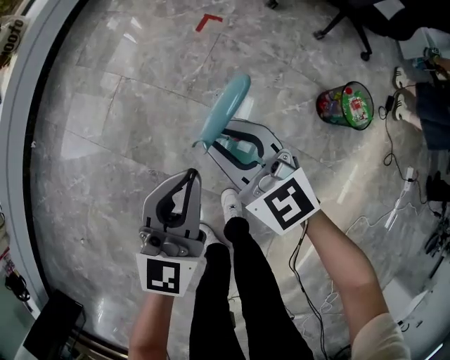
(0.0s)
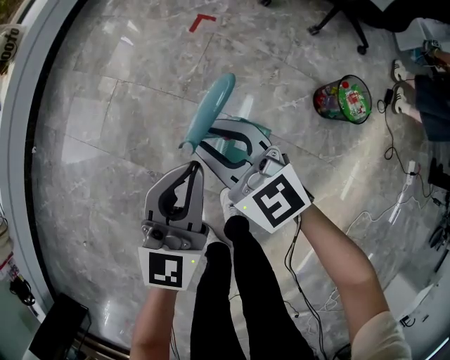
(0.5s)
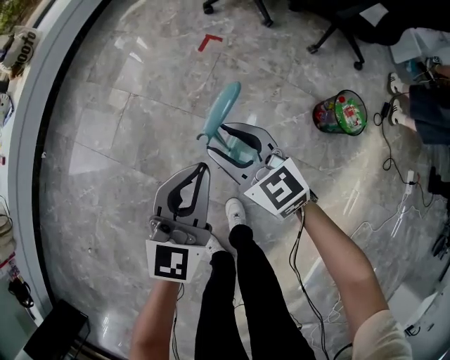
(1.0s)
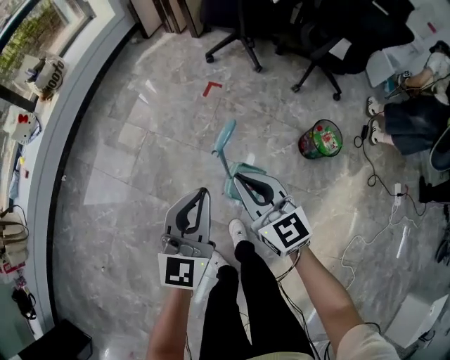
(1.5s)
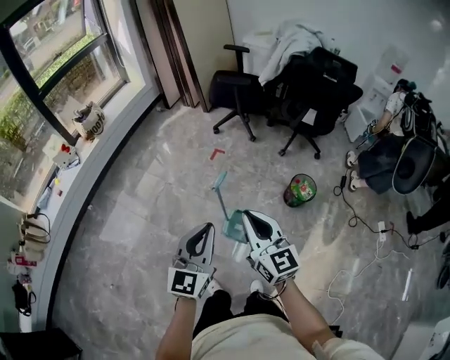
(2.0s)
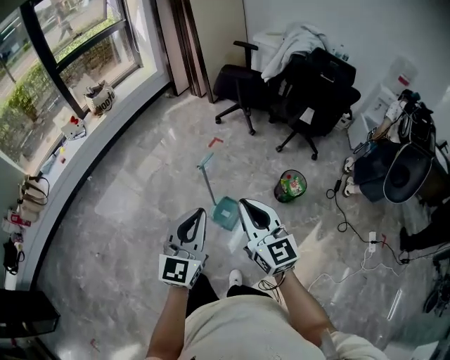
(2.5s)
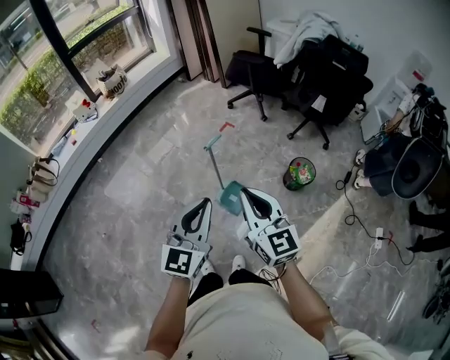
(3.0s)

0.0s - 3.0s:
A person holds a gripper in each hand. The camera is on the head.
0.0s - 1.5s: The right gripper is displaced upward and backward by approximately 20 cm, and opens and closes again. The left gripper is displaced upward by approximately 20 cm.
1.5s - 3.0s: The left gripper heads backward and upward, covering about 40 cm. The right gripper is displaced upward, backward and to the right by about 40 cm.

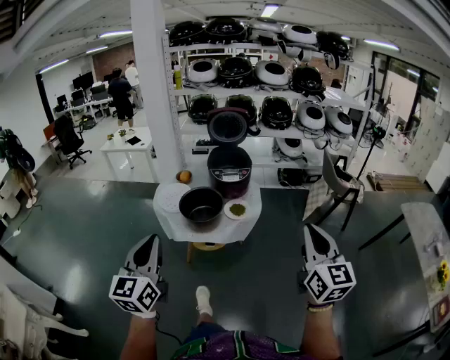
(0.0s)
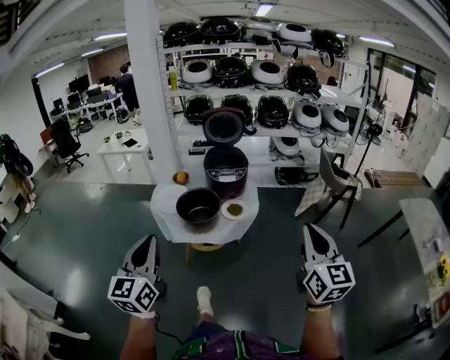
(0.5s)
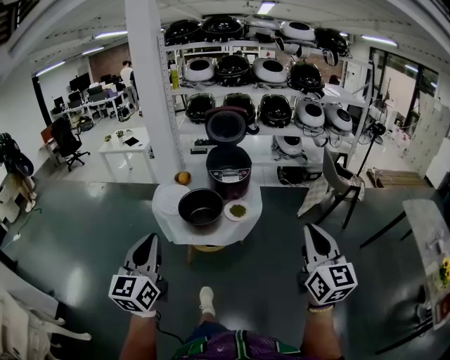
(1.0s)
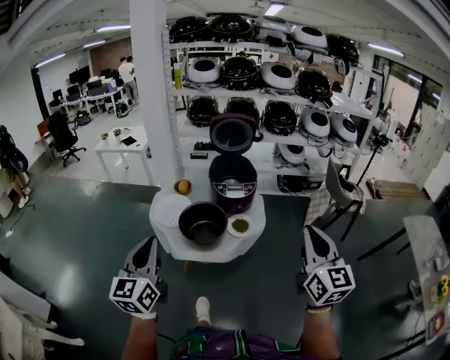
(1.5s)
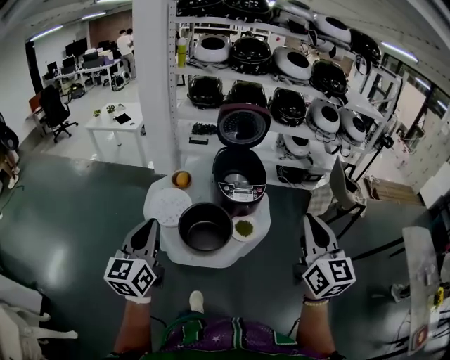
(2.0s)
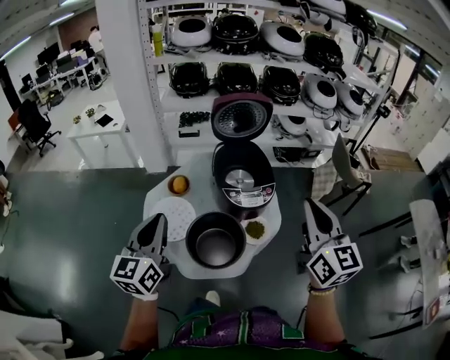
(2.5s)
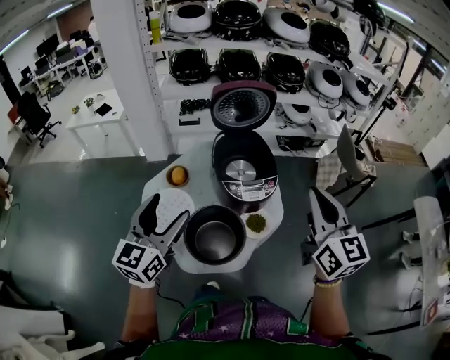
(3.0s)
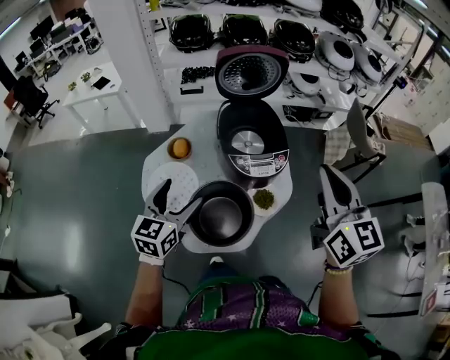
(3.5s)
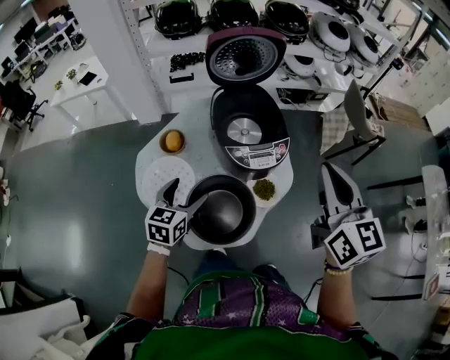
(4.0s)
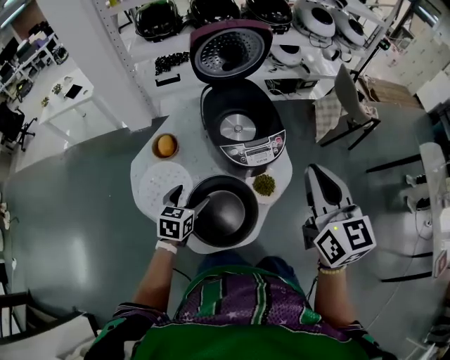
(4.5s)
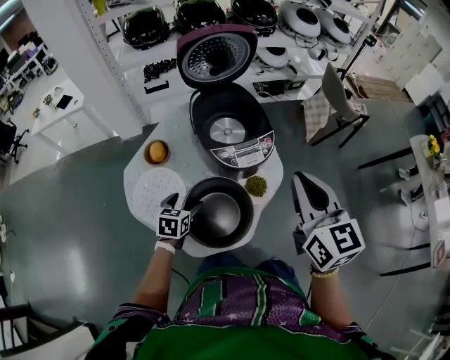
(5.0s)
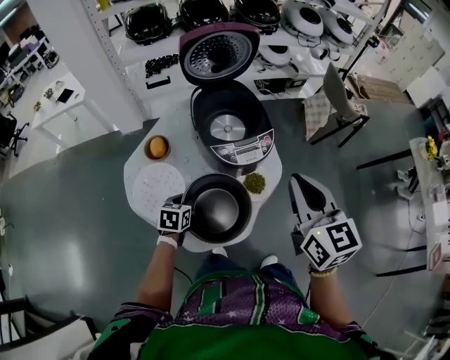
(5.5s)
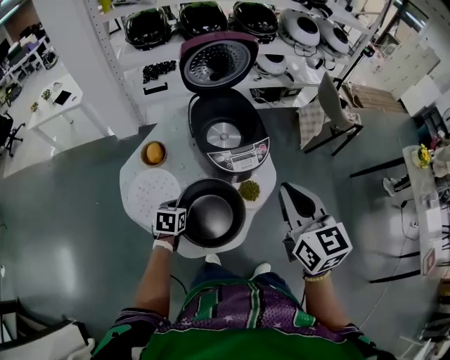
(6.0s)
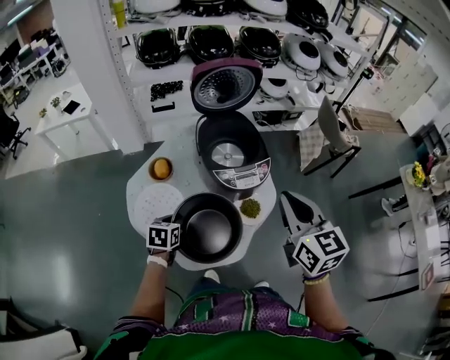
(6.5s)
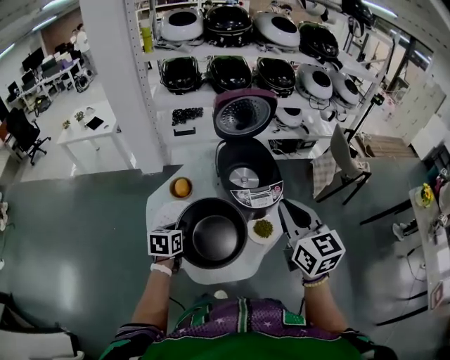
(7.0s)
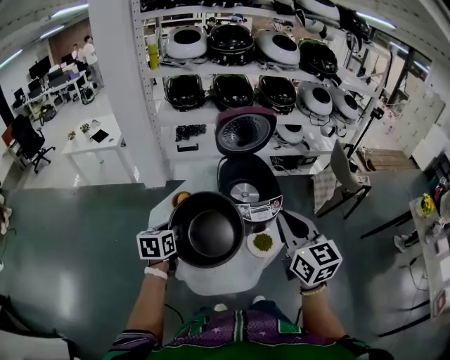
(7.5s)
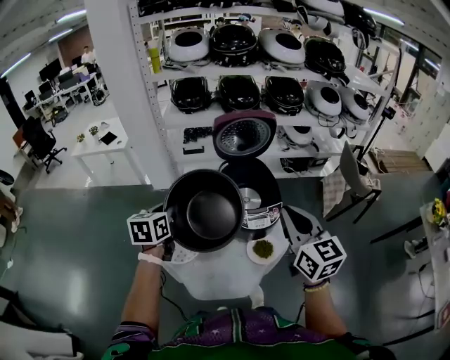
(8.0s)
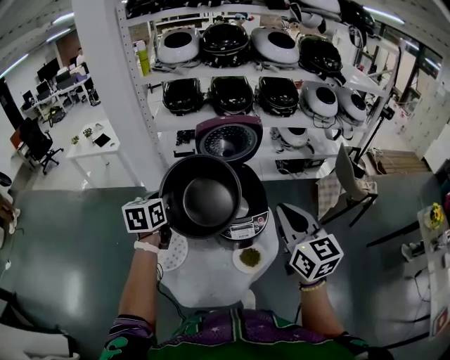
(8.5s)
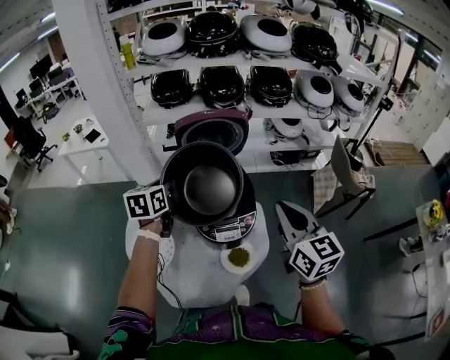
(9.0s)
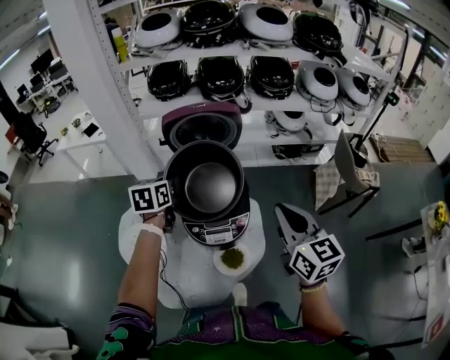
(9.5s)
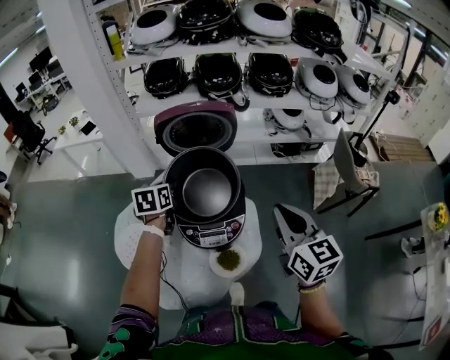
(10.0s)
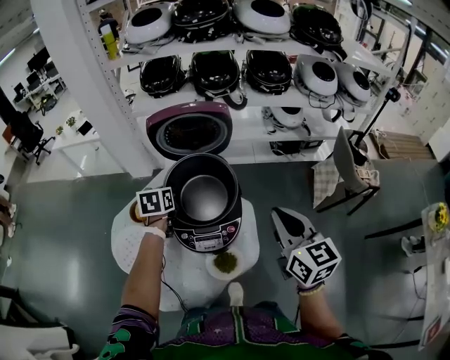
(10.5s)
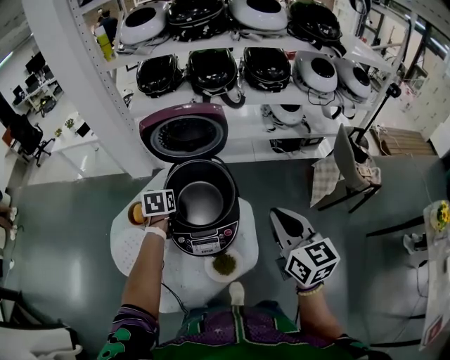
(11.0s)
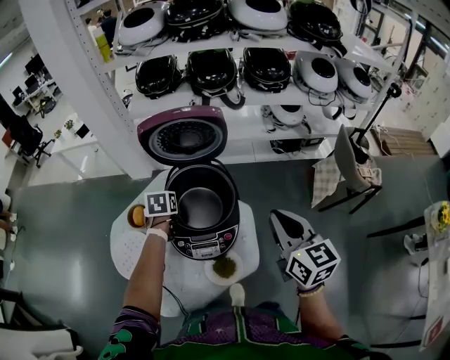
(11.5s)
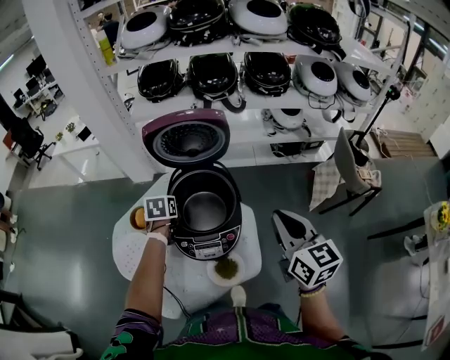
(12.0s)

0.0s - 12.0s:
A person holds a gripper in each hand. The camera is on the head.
0.0s - 2.0s: The grippers both shift forward by approximately 25 cm.
2.0s - 4.0s: The left gripper heads downward and forward, covering about 35 cm, changes its angle by approximately 40 degrees, and opens up, while the right gripper goes roughly 20 cm forward and downward.
4.0s - 6.0s: The left gripper goes some 15 cm downward, turns by about 20 degrees, and closes up, while the right gripper shifts about 5 cm downward.
6.0s - 8.0s: The right gripper heads upward and forward, covering about 10 cm. Meanwhile the left gripper travels upward by some 30 cm, and swivels some 30 degrees.
8.0s - 10.0s: The grippers both shift to the right, forward and downward by about 25 cm.
10.0s - 12.0s: The left gripper is displaced downward by some 10 cm.

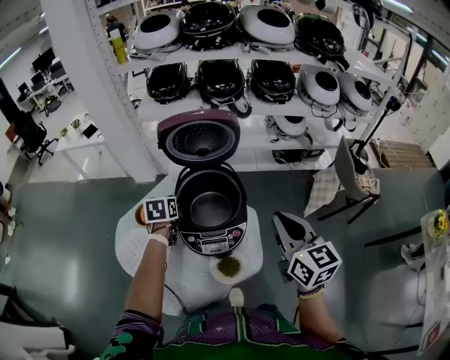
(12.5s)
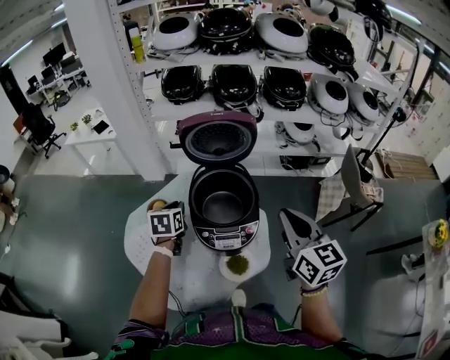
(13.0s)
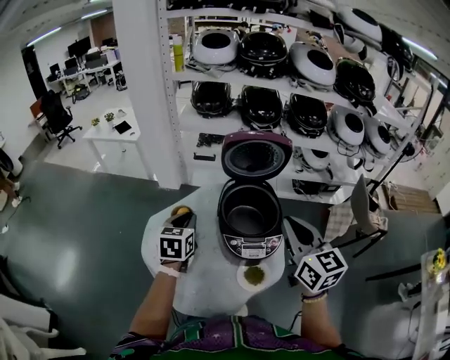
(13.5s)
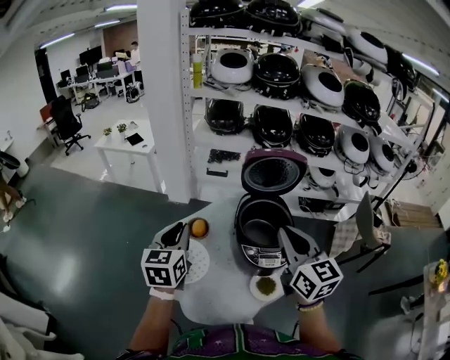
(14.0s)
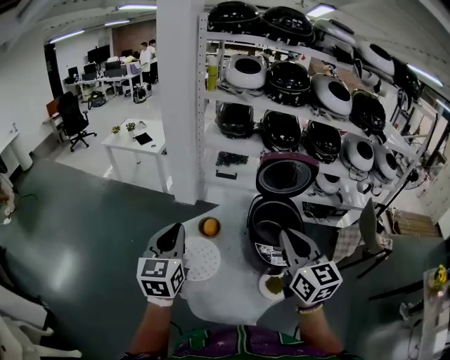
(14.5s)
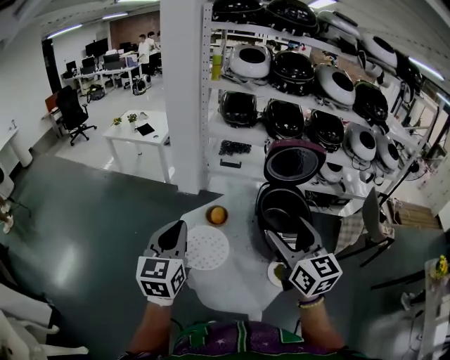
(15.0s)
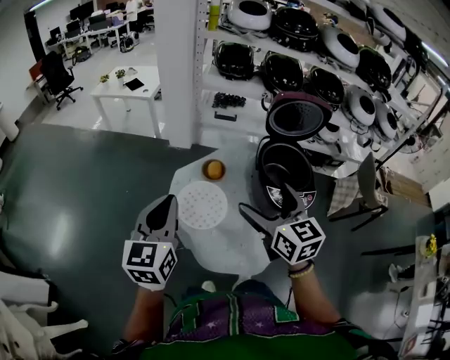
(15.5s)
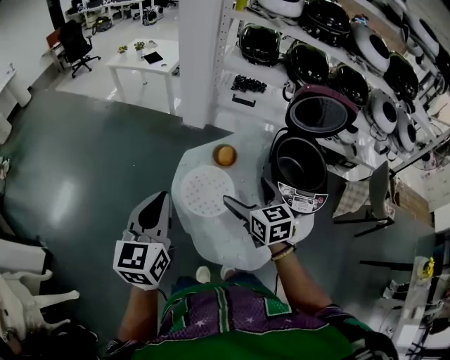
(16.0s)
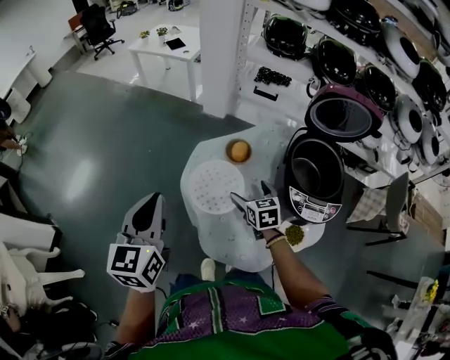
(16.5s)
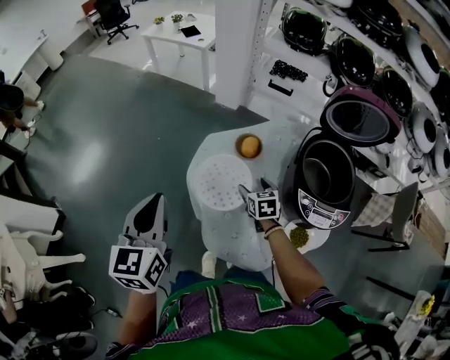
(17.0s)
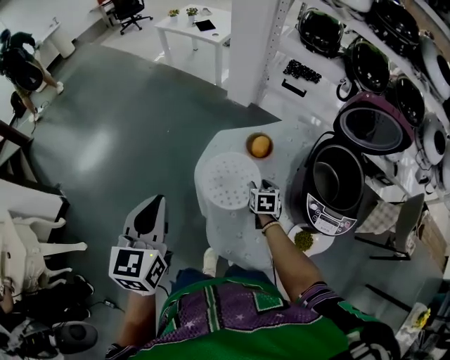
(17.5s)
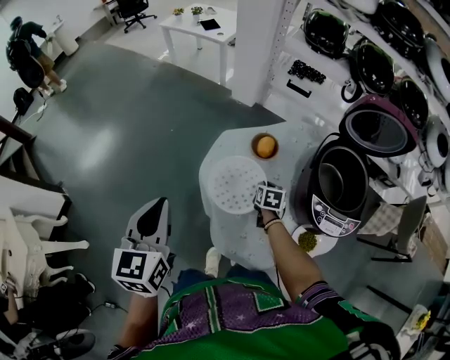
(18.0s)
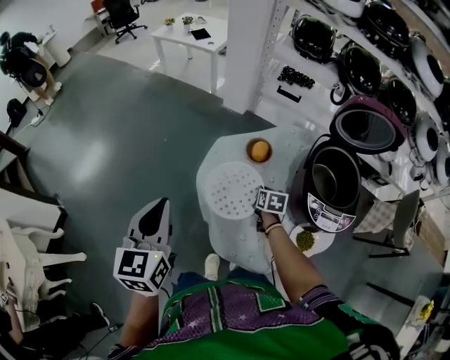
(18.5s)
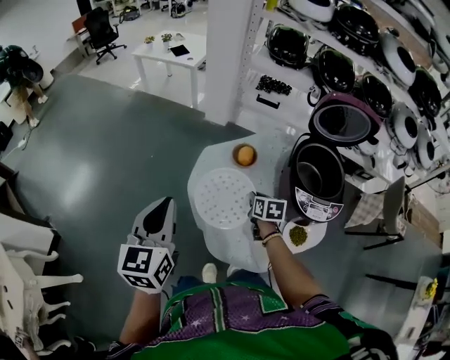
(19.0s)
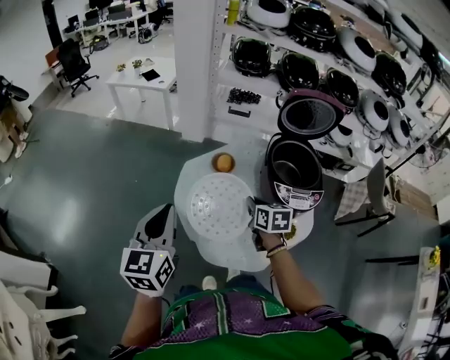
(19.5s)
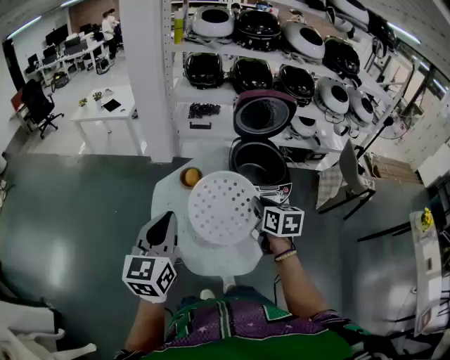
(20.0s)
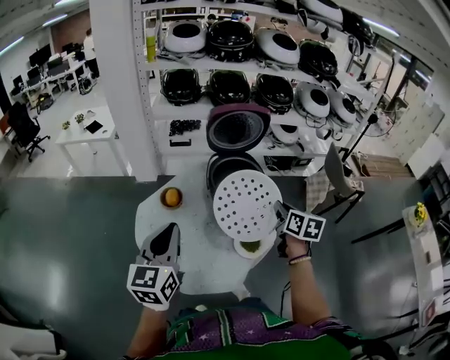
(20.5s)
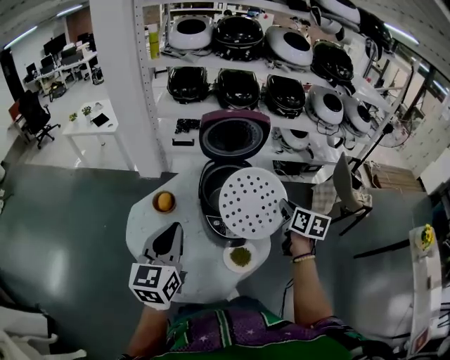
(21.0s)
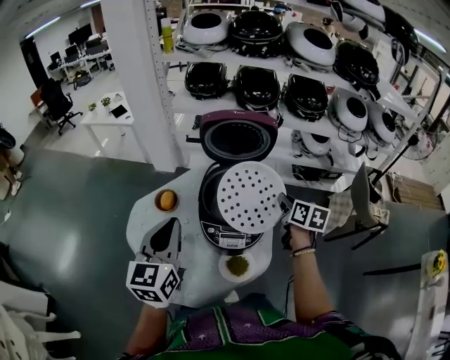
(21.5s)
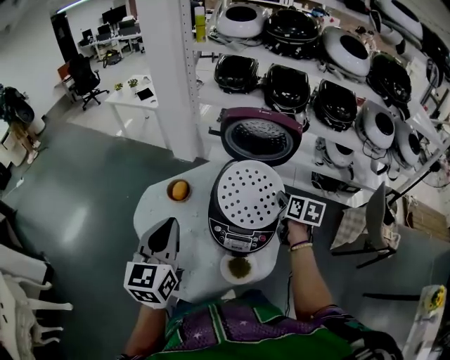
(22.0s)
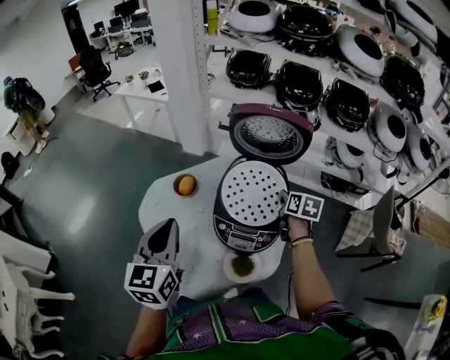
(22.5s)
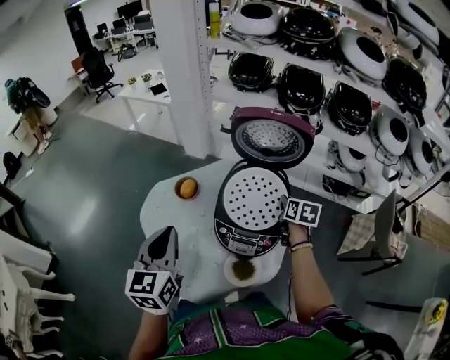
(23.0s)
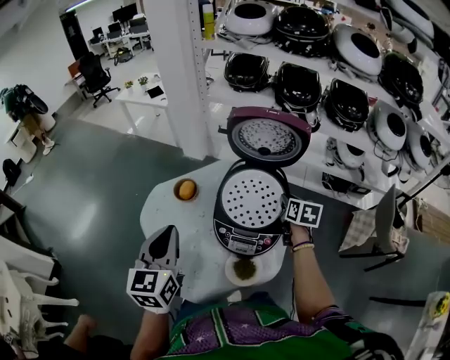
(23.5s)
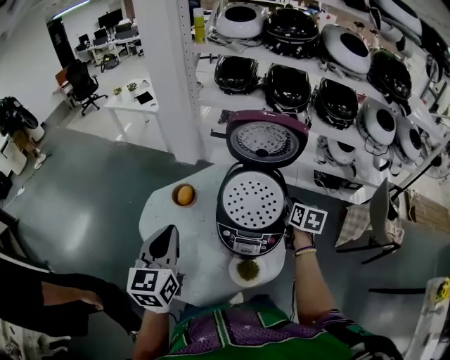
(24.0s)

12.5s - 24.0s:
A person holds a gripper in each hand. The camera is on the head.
12.5s - 14.5s: The left gripper heads to the left, upward and backward, covering approximately 40 cm, and tips its fingers upward by about 40 degrees. Meanwhile the right gripper is displaced to the left and upward by roughly 30 cm.
14.5s - 16.5s: The right gripper is displaced downward by approximately 35 cm, angles its fingers downward, by roughly 40 degrees, and opens up. The left gripper travels to the left and downward by some 15 cm.
16.5s - 18.5s: The right gripper heads downward, covering about 10 cm, swivels about 20 degrees, and closes its fingers.
18.5s - 20.0s: The right gripper heads upward, backward and to the right, covering some 30 cm, and turns by about 30 degrees; the left gripper moves to the right, some 10 cm, and turns by some 30 degrees.
20.0s - 22.0s: The right gripper shifts some 35 cm forward and to the right; the left gripper heads to the right and forward, covering roughly 25 cm.
22.0s - 24.0s: The grippers make only small movements.
